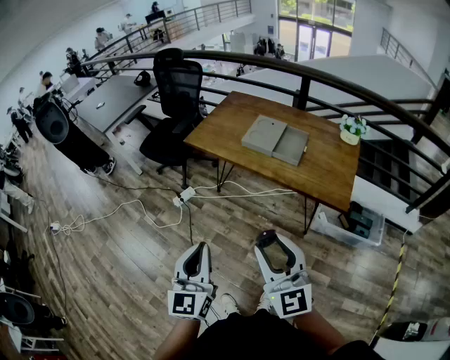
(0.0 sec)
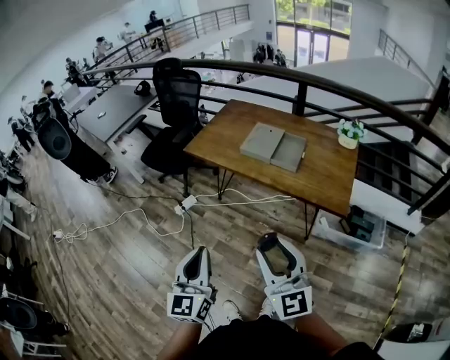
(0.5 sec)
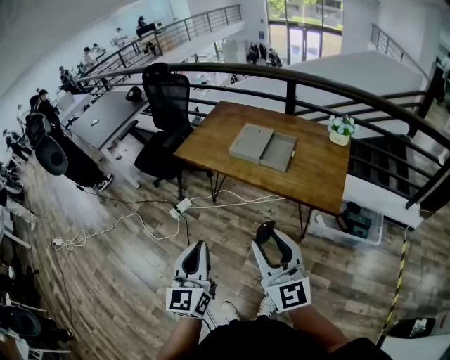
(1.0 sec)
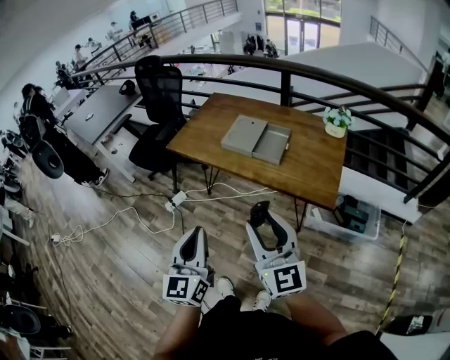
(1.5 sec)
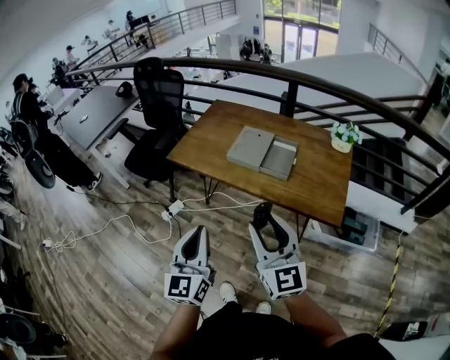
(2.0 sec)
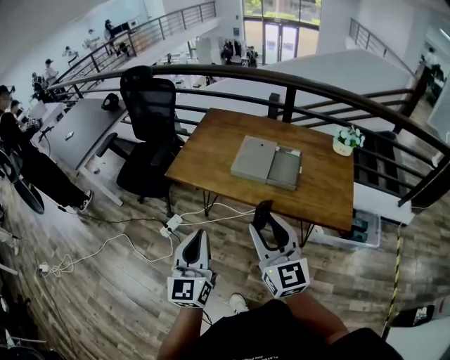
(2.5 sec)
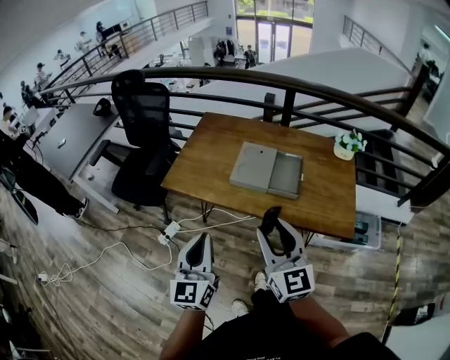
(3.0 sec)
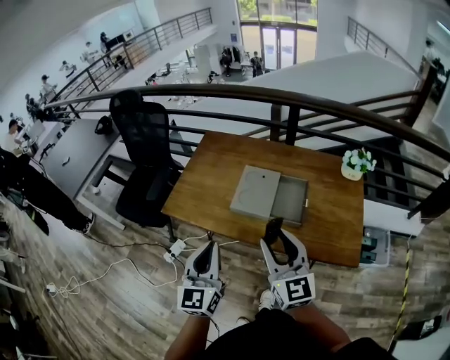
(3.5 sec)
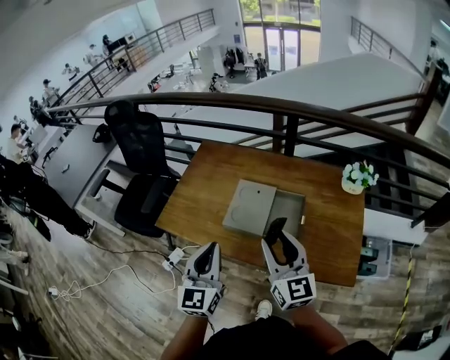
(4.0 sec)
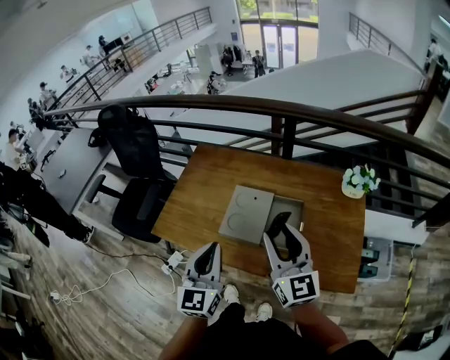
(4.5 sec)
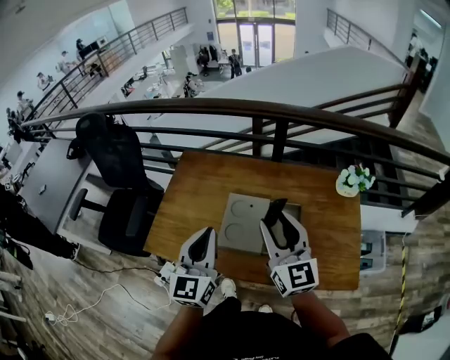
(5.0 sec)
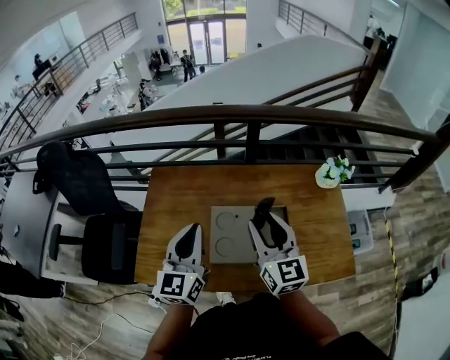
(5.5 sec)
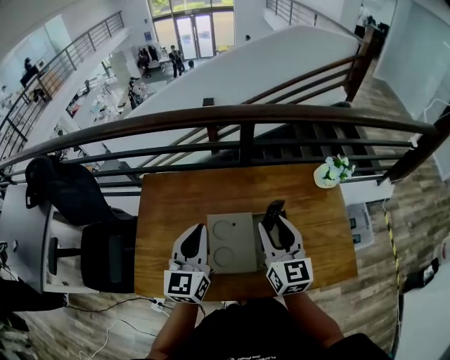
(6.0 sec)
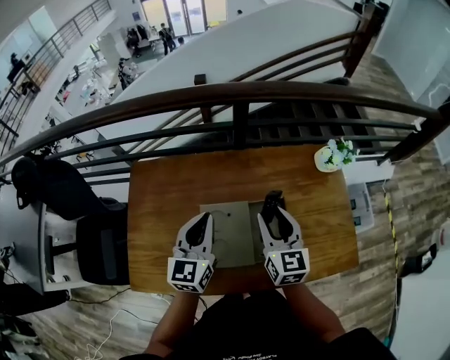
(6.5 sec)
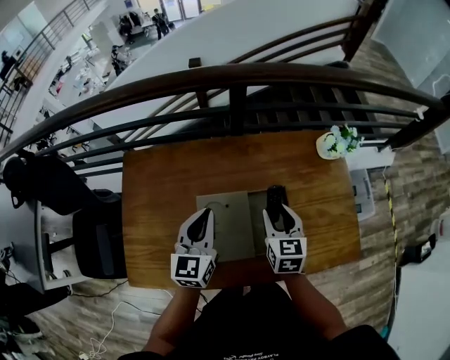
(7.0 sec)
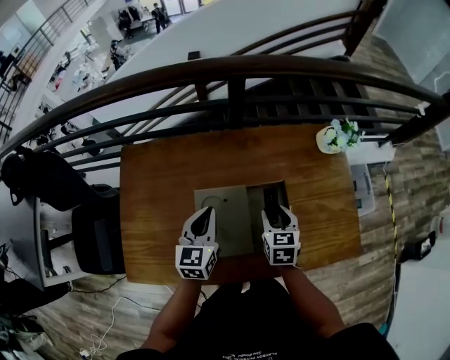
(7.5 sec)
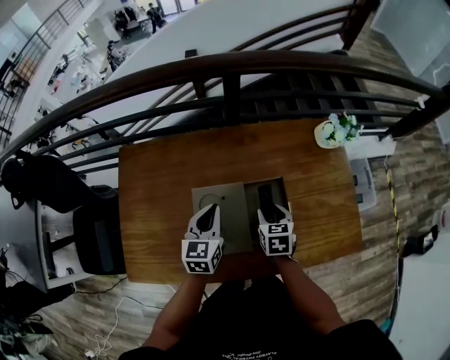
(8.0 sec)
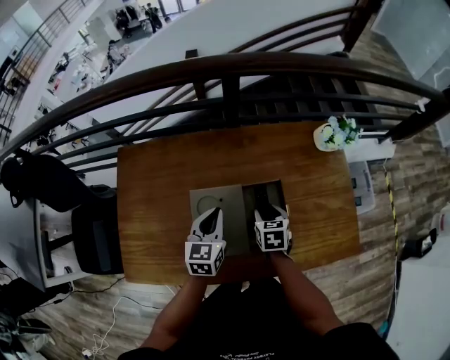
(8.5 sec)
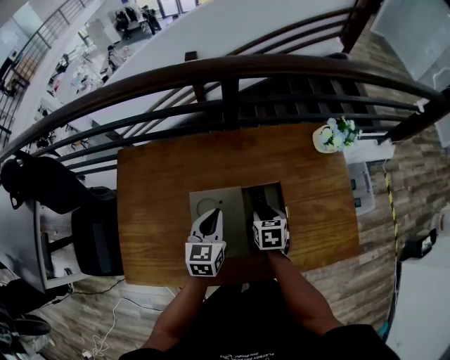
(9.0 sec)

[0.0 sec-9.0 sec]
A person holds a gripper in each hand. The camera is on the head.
0.0 sec to 2.0 sec: The two grippers go roughly 15 cm forward.
2.0 sec to 4.5 sec: The two grippers go some 35 cm forward.
4.5 sec to 7.0 sec: The right gripper goes about 20 cm downward, and angles its fingers downward, by approximately 40 degrees. Meanwhile the left gripper changes place by approximately 30 cm, and changes its angle by roughly 30 degrees.
7.0 sec to 9.0 sec: The grippers both shift downward by about 10 cm. The right gripper changes its angle by some 20 degrees.

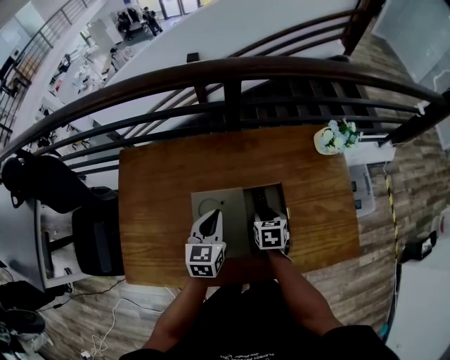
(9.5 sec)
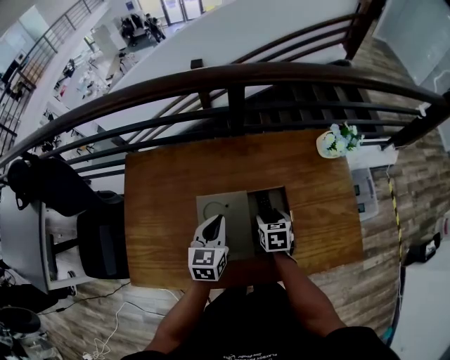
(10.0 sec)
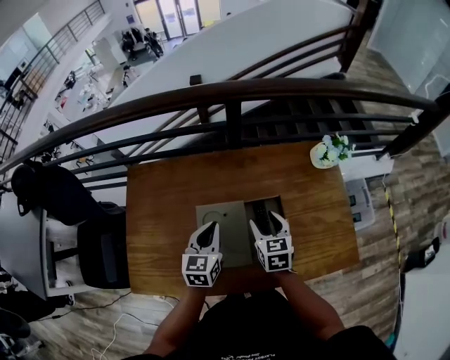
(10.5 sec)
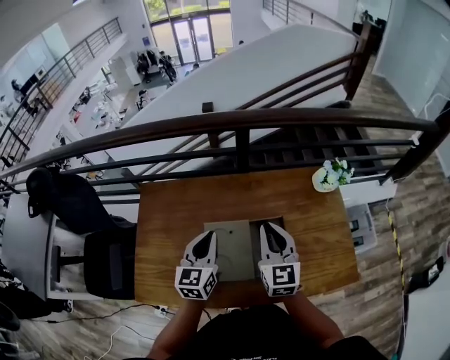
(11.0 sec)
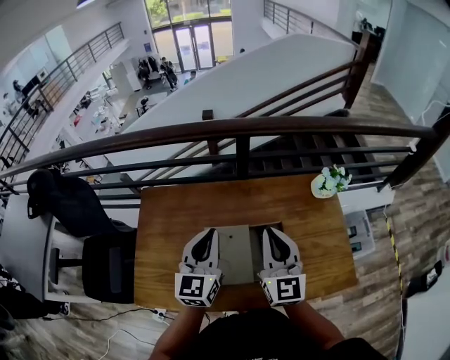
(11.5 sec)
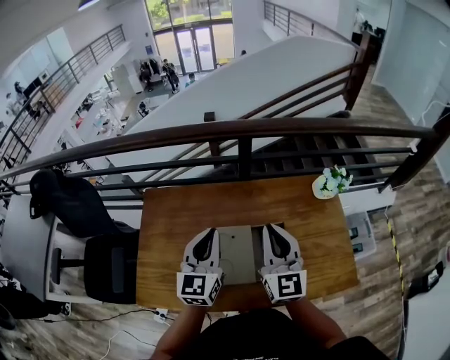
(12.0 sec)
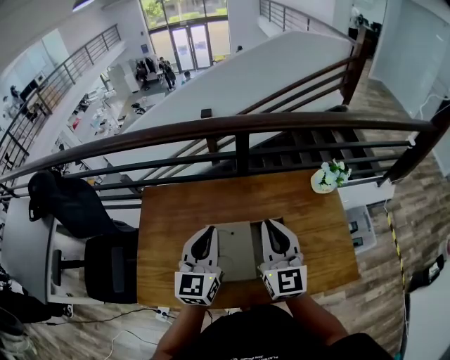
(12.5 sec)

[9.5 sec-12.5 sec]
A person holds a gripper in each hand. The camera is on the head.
9.5 sec to 11.0 sec: The left gripper shifts approximately 10 cm upward. Meanwhile the right gripper heads upward, covering roughly 25 cm, tilts its fingers some 50 degrees upward, and closes.
11.0 sec to 12.5 sec: Both grippers travel together upward, some 10 cm.

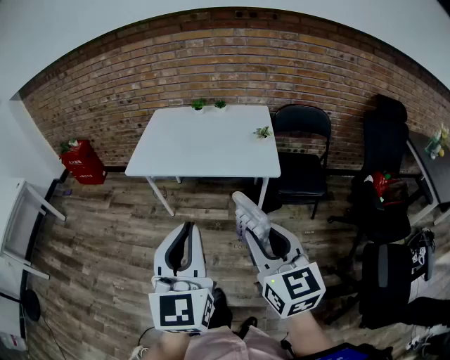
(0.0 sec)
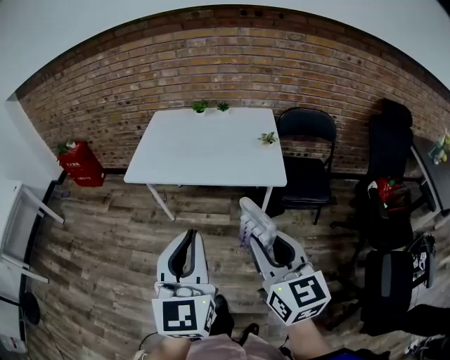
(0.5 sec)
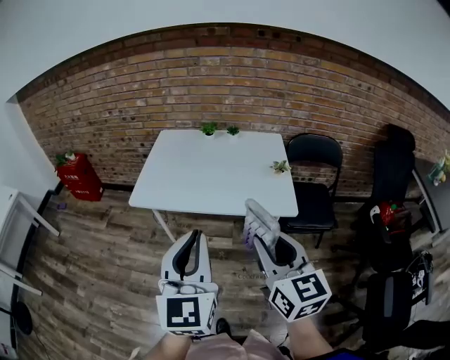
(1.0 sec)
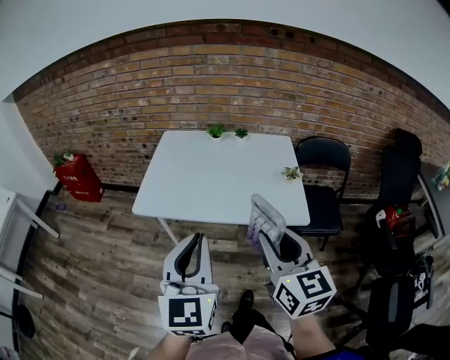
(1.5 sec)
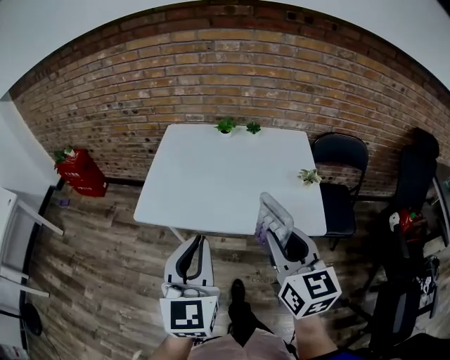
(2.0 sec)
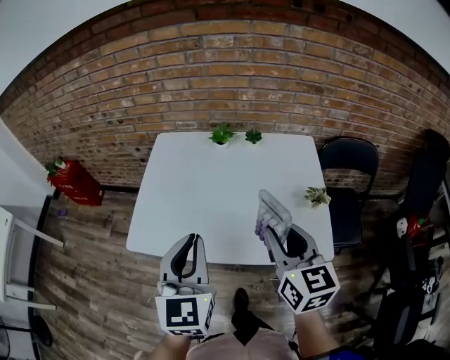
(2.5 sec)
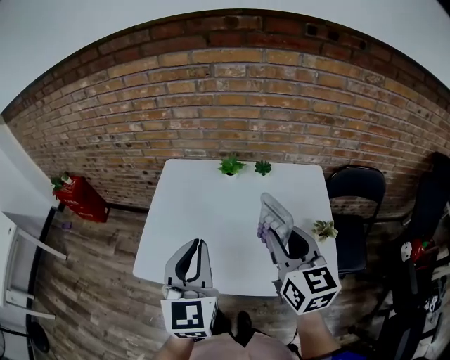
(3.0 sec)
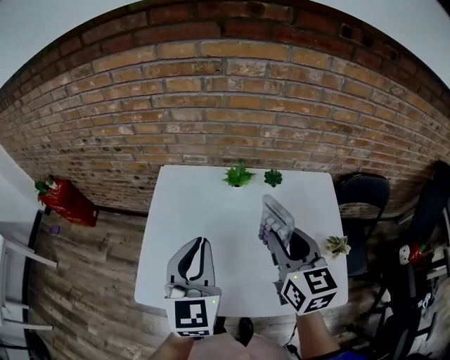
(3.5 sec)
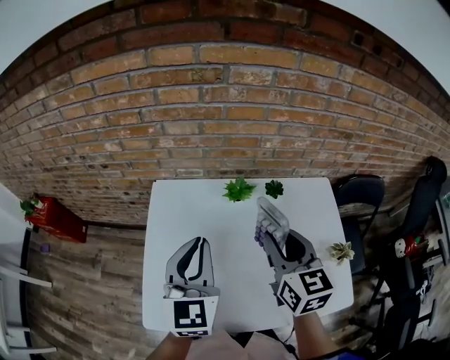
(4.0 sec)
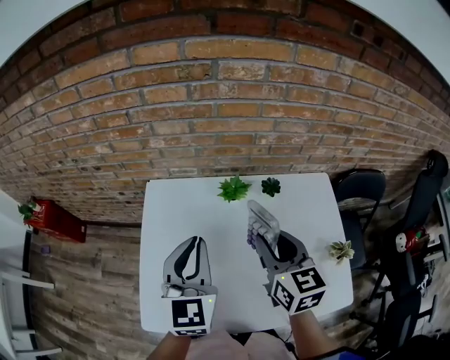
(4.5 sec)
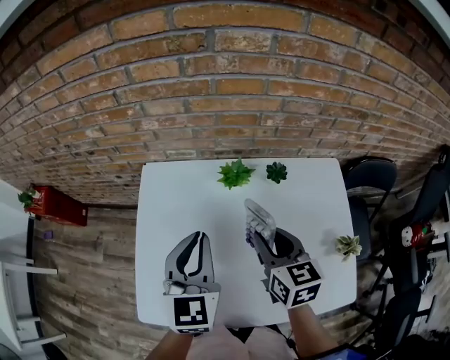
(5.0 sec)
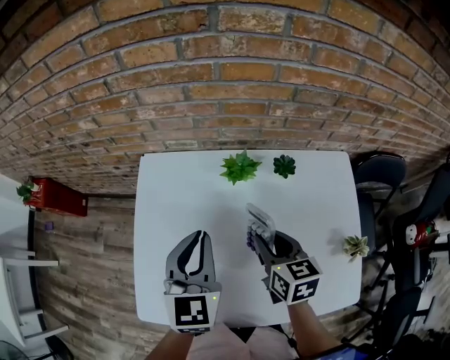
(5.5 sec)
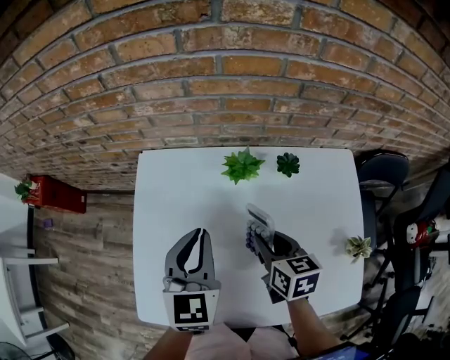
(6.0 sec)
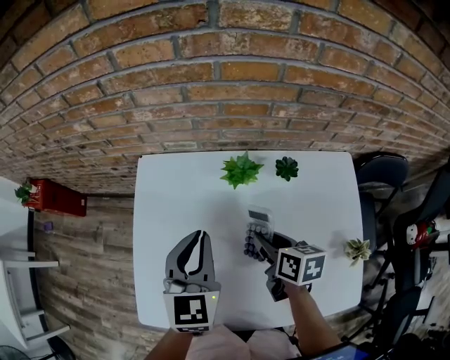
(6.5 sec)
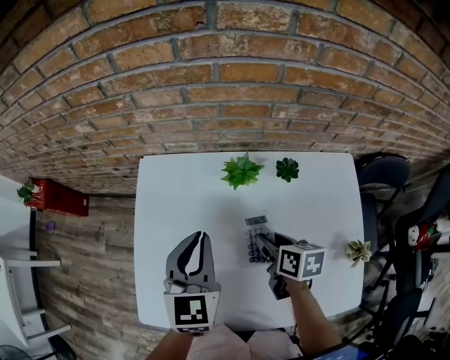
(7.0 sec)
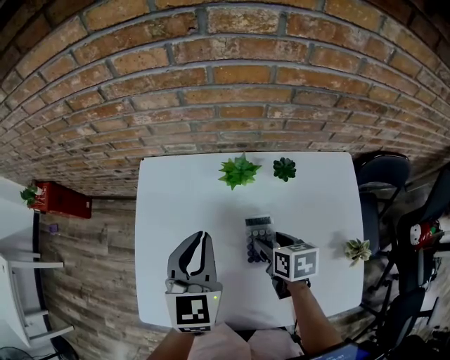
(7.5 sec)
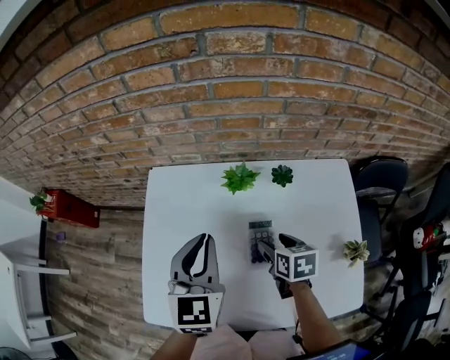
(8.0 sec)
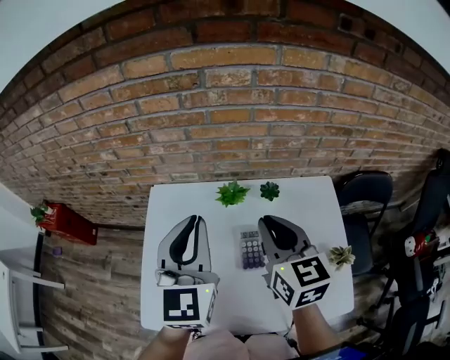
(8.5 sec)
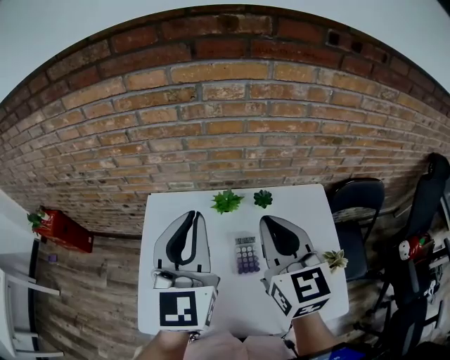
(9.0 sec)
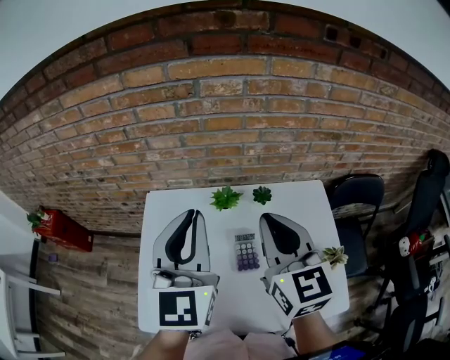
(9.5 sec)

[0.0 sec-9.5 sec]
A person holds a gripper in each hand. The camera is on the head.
0.0 sec to 2.0 sec: The grippers both shift forward by some 30 cm.
2.0 sec to 4.0 sec: The two grippers go roughly 40 cm forward.
4.0 sec to 5.5 sec: The right gripper goes some 15 cm downward, and rotates roughly 20 degrees. The left gripper heads downward, covering about 10 cm.
5.5 sec to 7.5 sec: The right gripper is displaced downward by approximately 10 cm, and opens up.
7.5 sec to 9.5 sec: The right gripper heads upward, covering some 35 cm, tips its fingers upward by about 40 degrees, and closes its fingers. The left gripper goes roughly 20 cm upward, and swivels some 20 degrees.

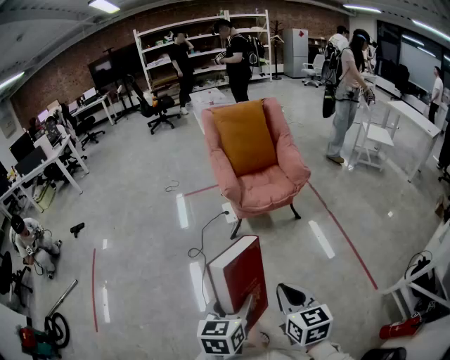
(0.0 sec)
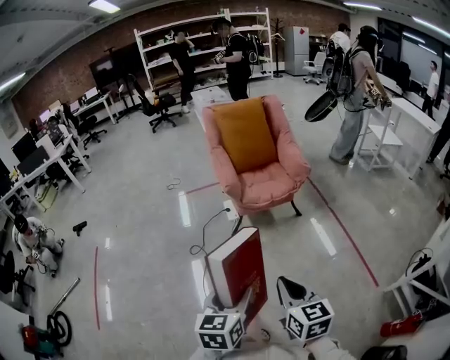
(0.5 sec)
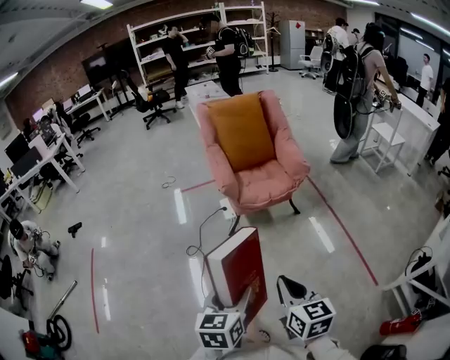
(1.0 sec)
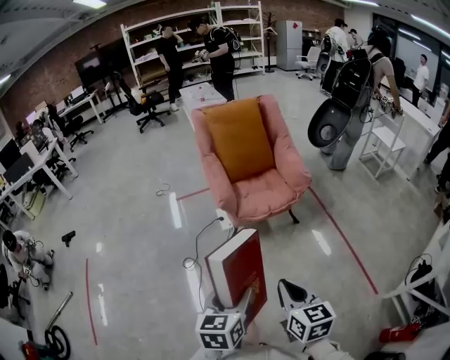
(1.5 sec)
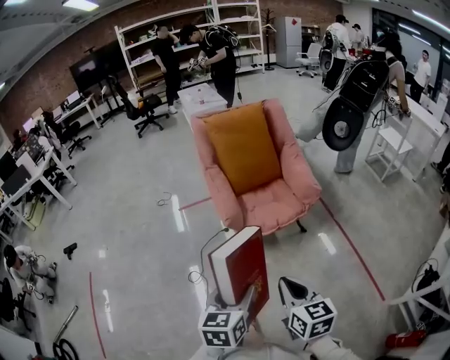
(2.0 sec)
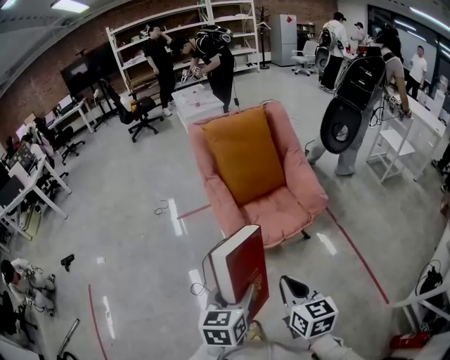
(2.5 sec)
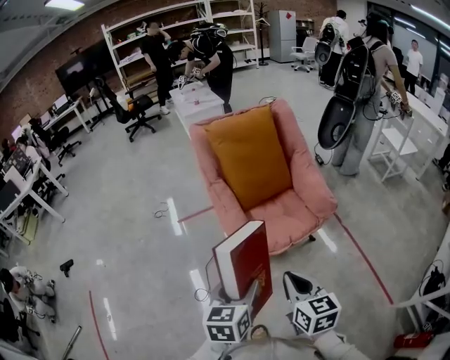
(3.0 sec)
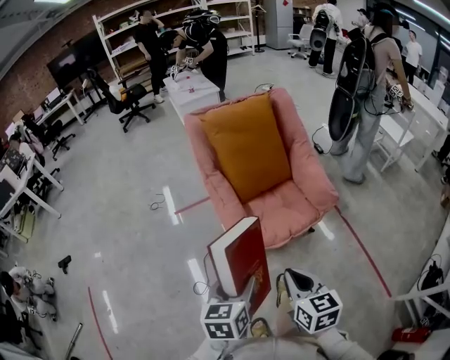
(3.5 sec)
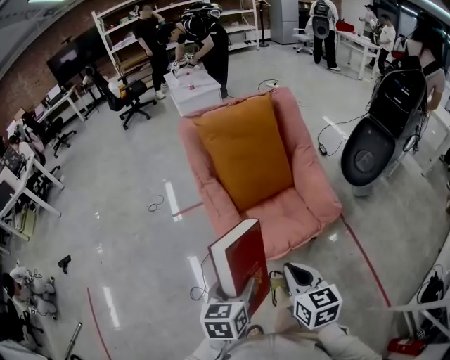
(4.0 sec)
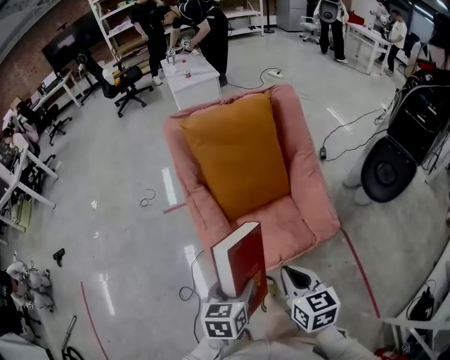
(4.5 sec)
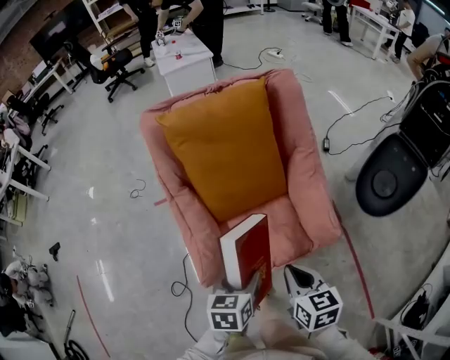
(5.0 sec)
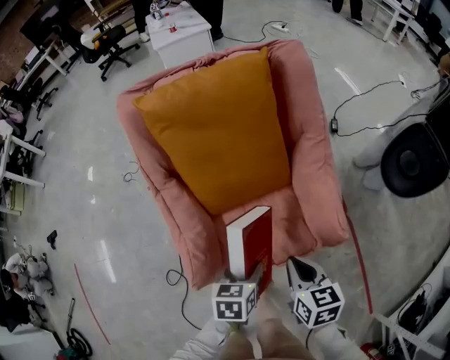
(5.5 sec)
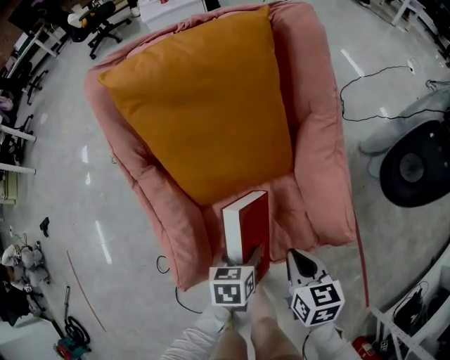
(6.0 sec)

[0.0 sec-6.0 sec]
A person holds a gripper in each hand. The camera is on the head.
0.0 sec to 2.0 sec: Both grippers move forward, about 25 cm.
2.0 sec to 4.0 sec: The two grippers go about 25 cm forward.
4.0 sec to 6.0 sec: Both grippers travel together forward, downward and to the right, approximately 35 cm. The left gripper changes its angle by approximately 20 degrees.
